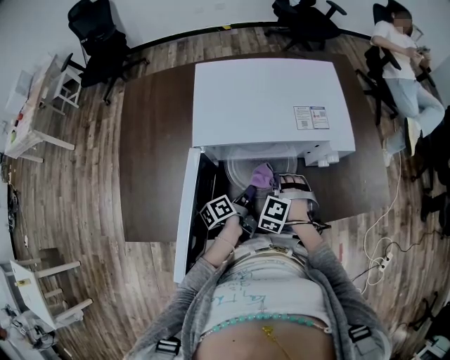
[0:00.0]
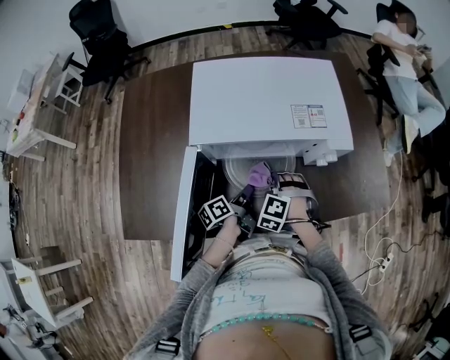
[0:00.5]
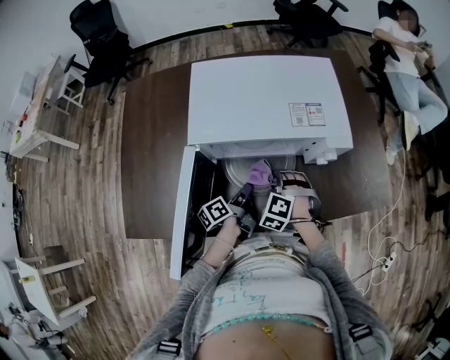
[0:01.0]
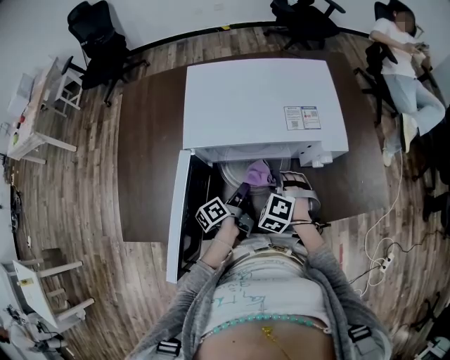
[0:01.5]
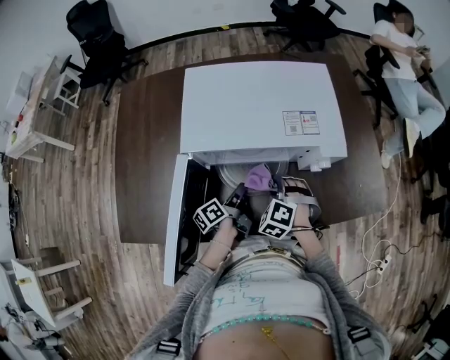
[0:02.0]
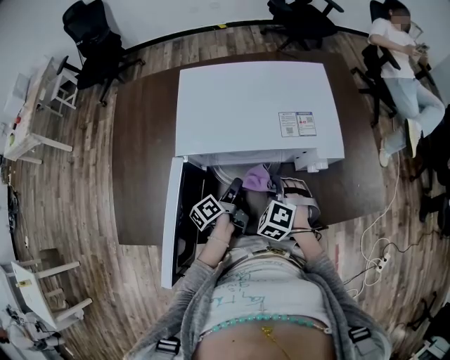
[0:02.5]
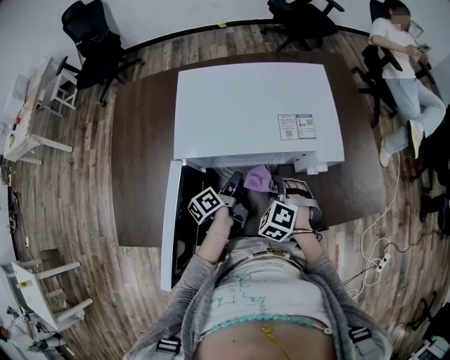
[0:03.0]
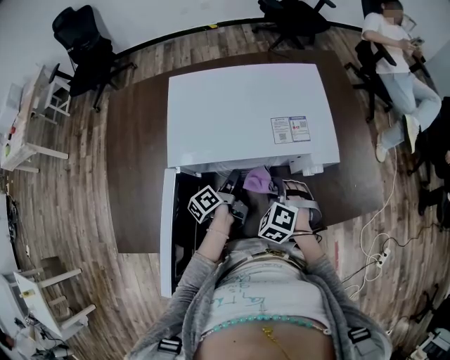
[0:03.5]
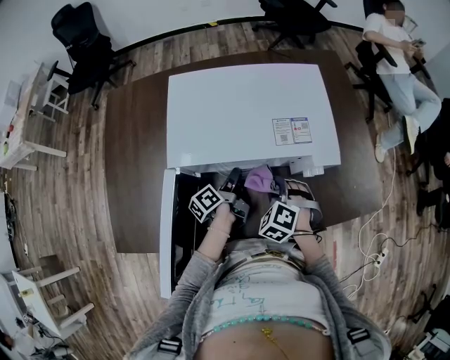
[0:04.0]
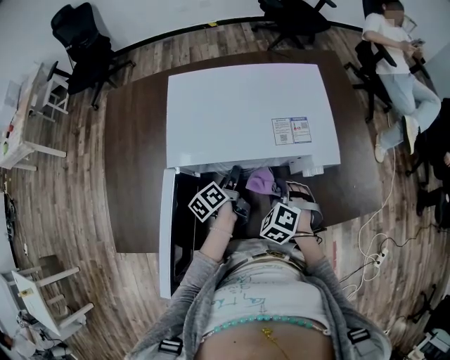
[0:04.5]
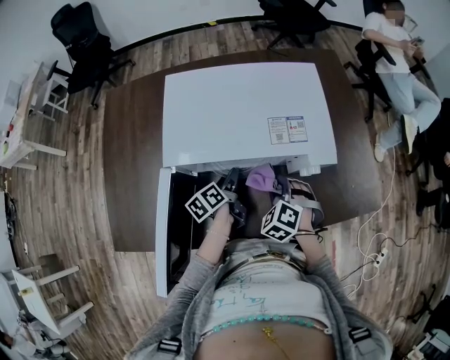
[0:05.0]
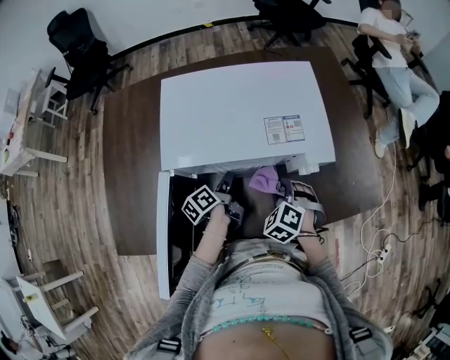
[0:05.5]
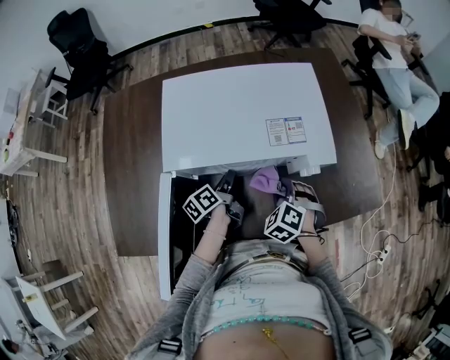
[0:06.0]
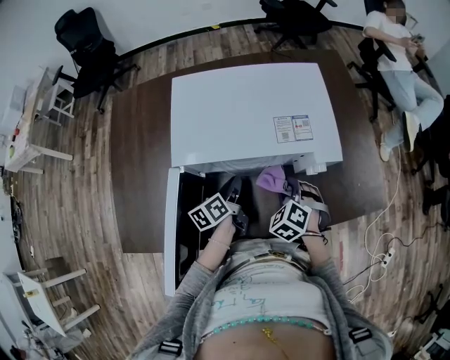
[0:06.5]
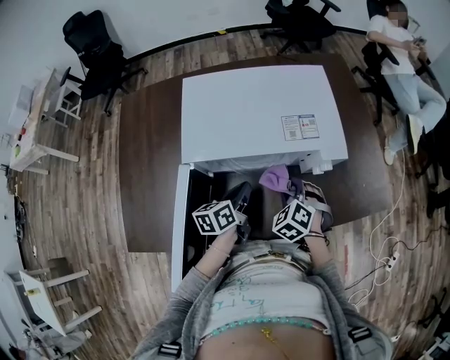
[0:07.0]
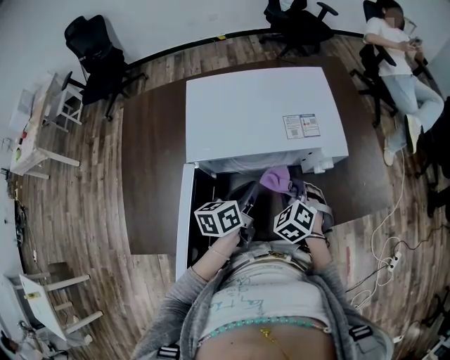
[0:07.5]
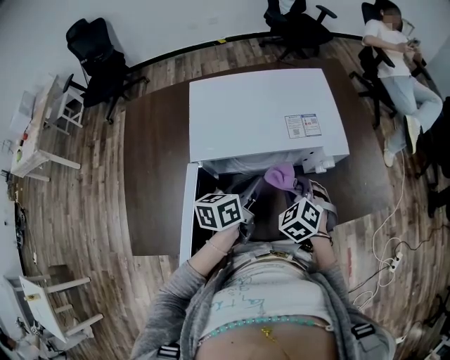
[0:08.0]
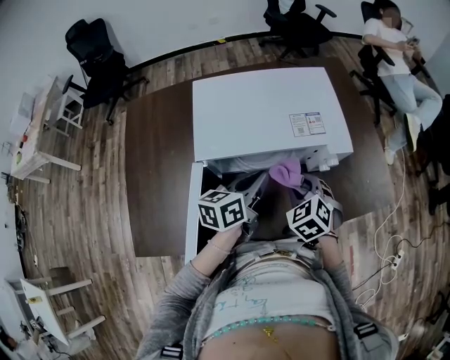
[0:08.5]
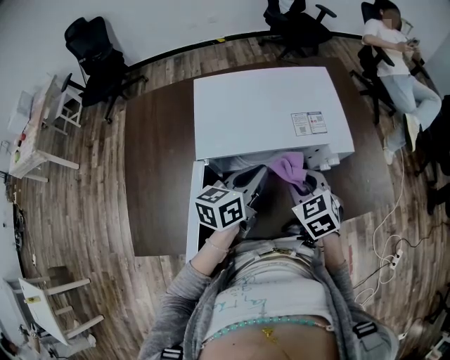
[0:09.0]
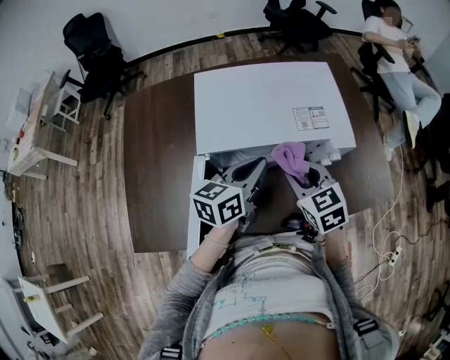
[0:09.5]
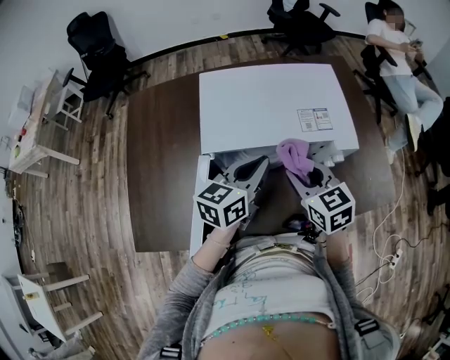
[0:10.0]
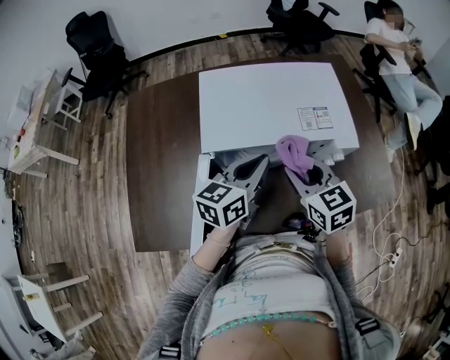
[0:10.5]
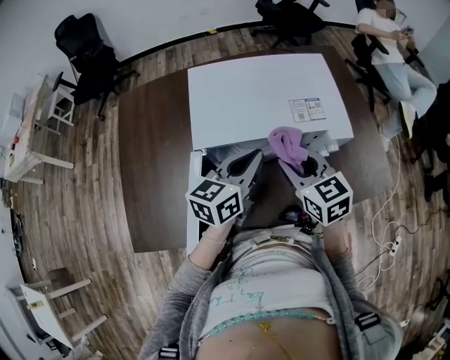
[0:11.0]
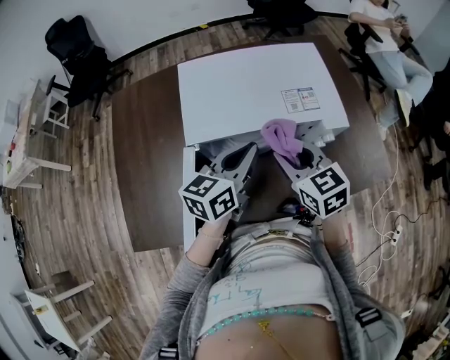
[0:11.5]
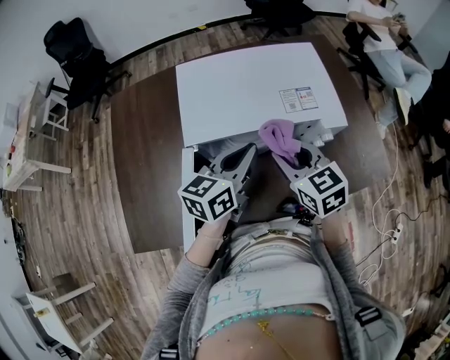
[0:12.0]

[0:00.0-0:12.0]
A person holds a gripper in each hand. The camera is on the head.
0:00.0 to 0:02.0: There are only small adjustments of the grippers.
0:02.0 to 0:04.0: The left gripper heads forward, covering approximately 10 cm.
0:04.0 to 0:06.0: The left gripper opens and closes again.
0:06.0 to 0:08.0: The right gripper changes place by roughly 5 cm; the left gripper moves upward, some 15 cm, and swivels some 40 degrees.
0:08.0 to 0:10.0: The two grippers go roughly 10 cm upward. The left gripper changes its angle by roughly 20 degrees, while the right gripper turns by roughly 40 degrees.
0:10.0 to 0:12.0: There are only small adjustments of the grippers.

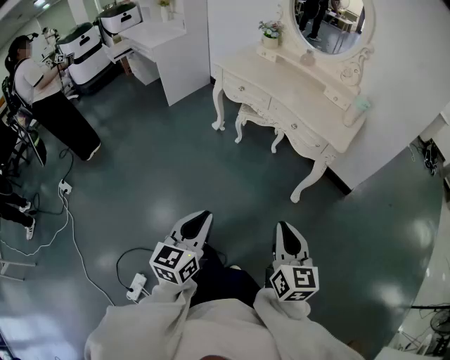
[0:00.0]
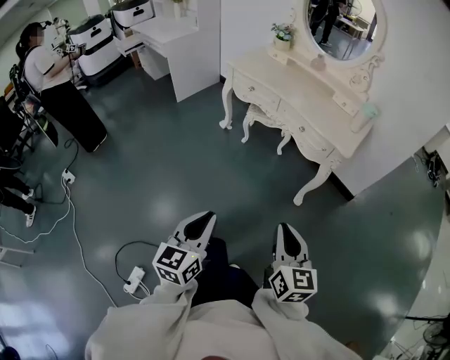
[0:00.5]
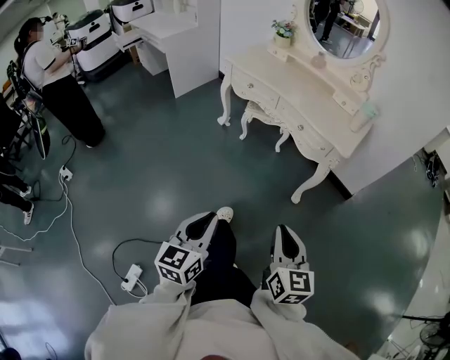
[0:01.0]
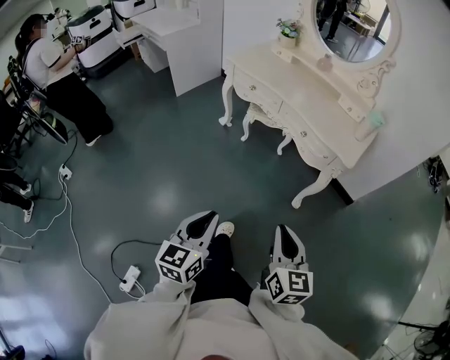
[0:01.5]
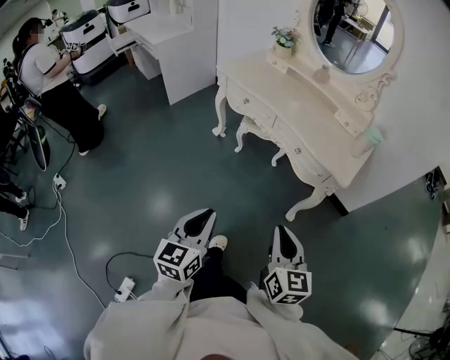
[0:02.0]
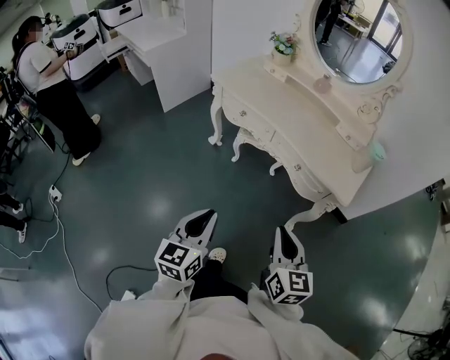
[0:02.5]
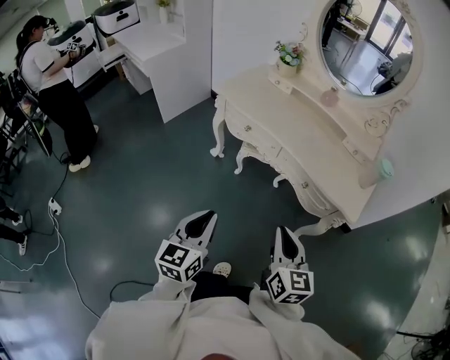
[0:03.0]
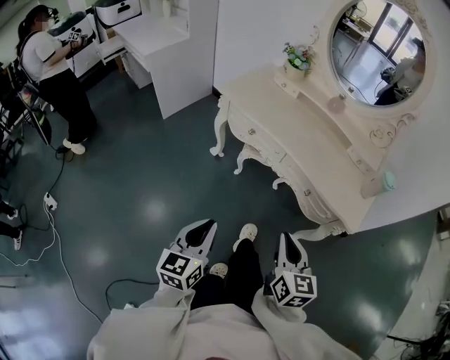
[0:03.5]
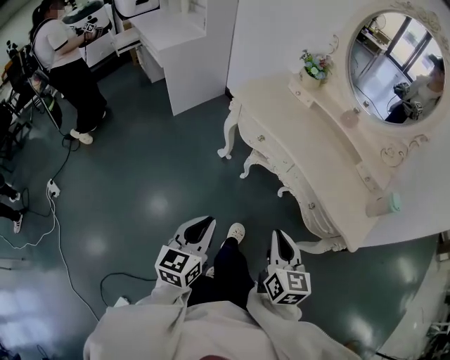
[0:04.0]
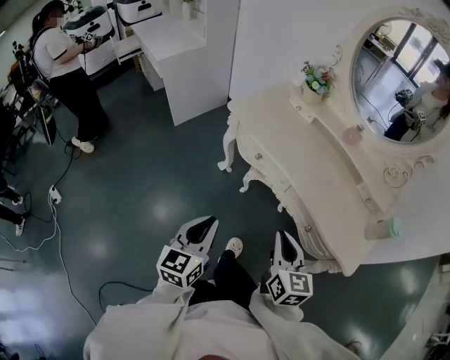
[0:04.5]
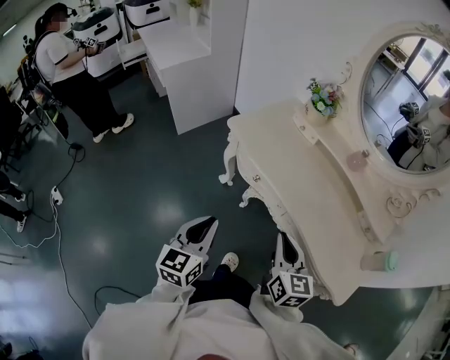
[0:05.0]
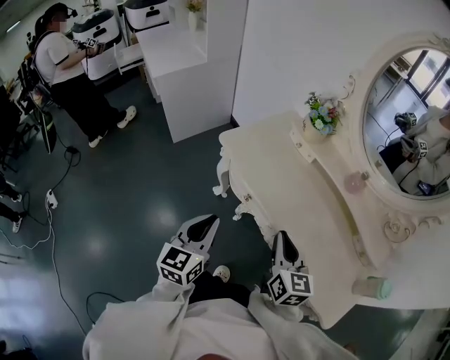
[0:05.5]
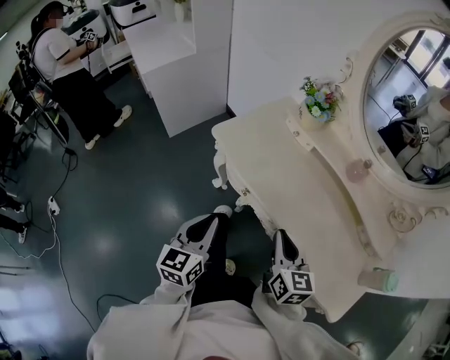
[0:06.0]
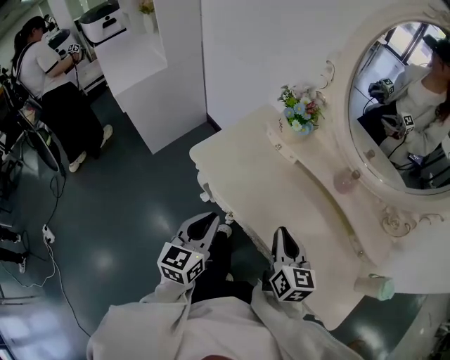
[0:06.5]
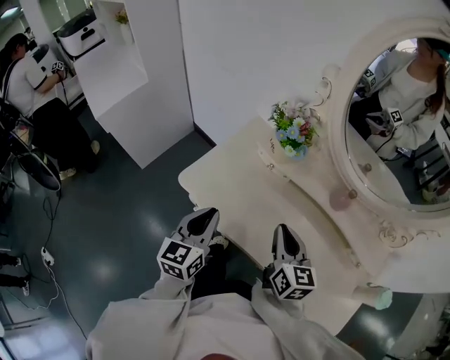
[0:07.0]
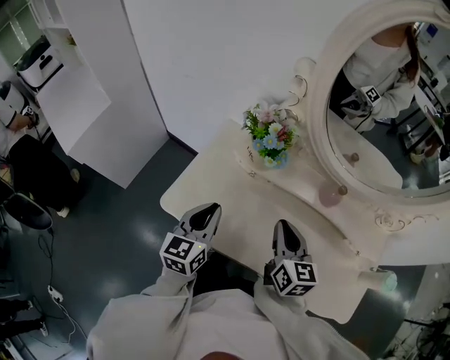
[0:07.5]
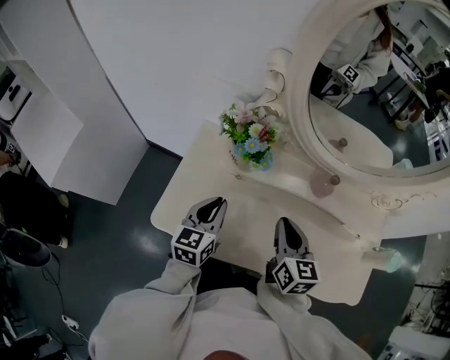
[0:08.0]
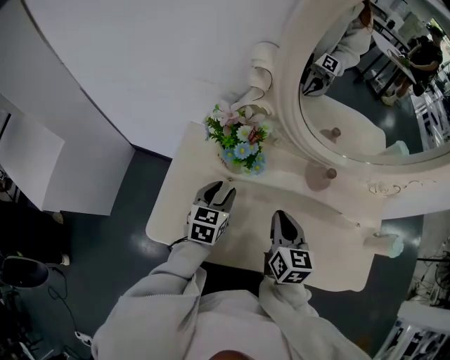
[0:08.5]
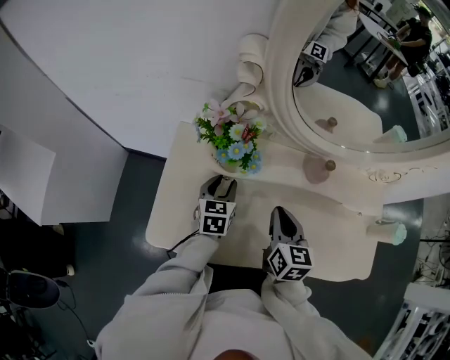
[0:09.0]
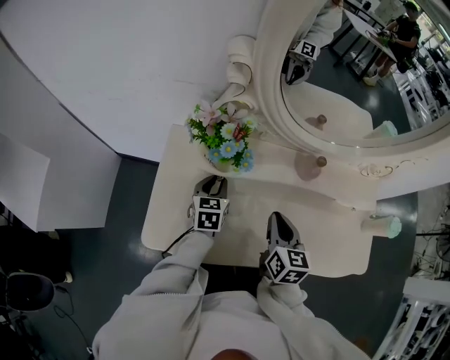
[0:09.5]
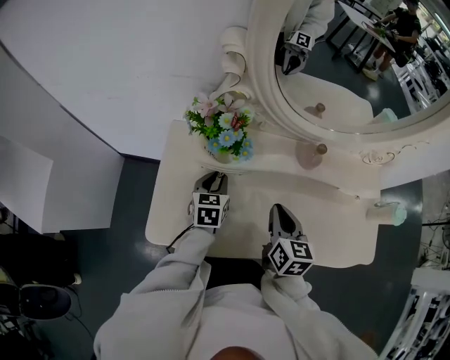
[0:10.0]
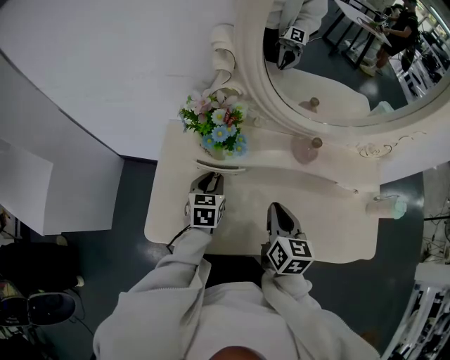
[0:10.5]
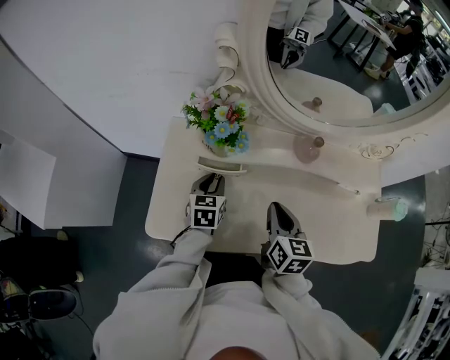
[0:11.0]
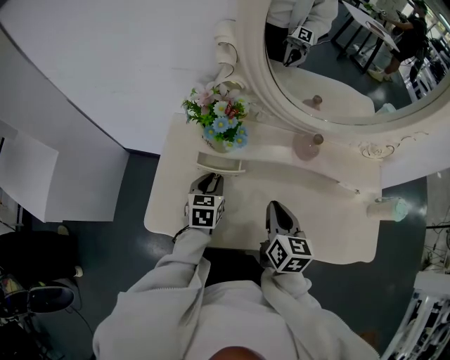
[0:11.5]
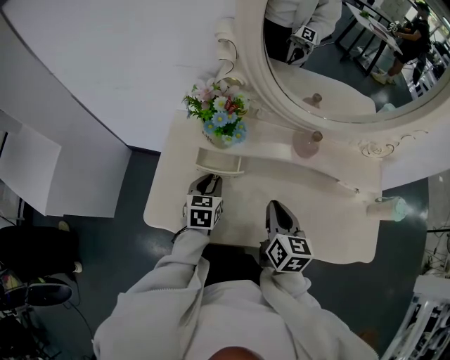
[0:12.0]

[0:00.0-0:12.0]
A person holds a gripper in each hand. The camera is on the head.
0:00.0 to 0:02.0: Both grippers travel together forward, about 15 cm.
0:02.0 to 0:04.0: Both grippers move forward and to the left, approximately 25 cm.
0:04.0 to 0:06.0: The grippers both shift forward by approximately 30 cm.
0:06.0 to 0:08.0: The right gripper ends up about 25 cm from where it was, and turns by about 30 degrees. The left gripper ends up about 35 cm from where it was, and rotates some 30 degrees.
0:08.0 to 0:10.0: The left gripper goes about 15 cm downward and forward. Meanwhile the right gripper shifts by some 5 cm.
0:10.0 to 0:12.0: The left gripper shifts approximately 5 cm backward.

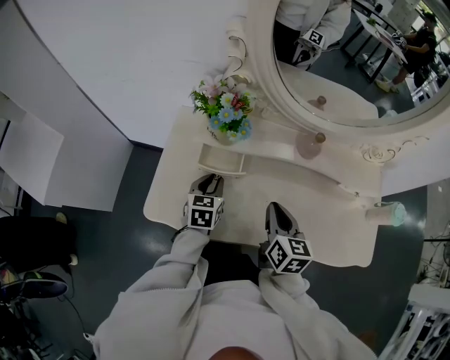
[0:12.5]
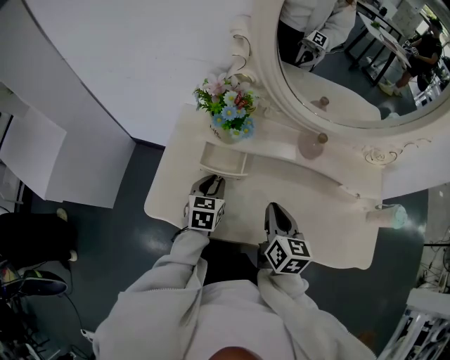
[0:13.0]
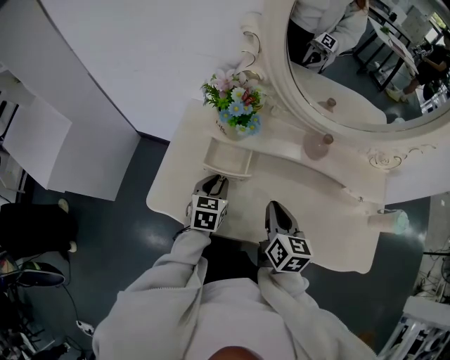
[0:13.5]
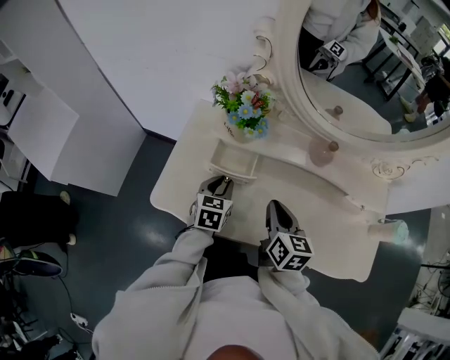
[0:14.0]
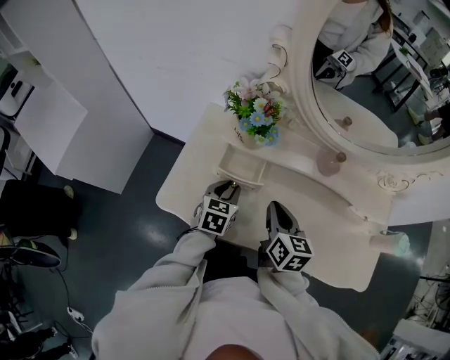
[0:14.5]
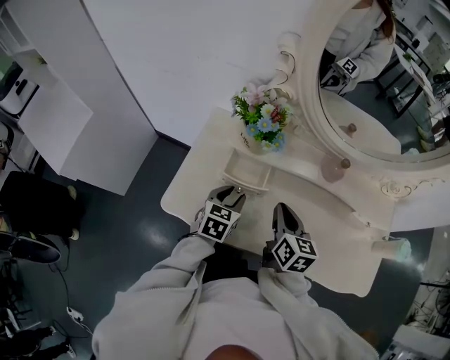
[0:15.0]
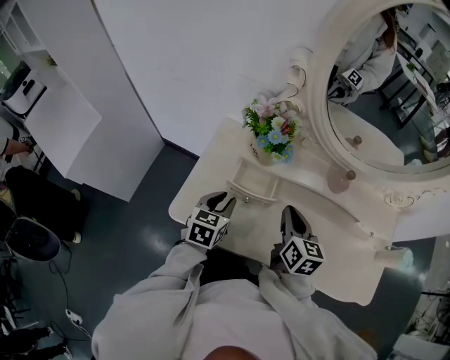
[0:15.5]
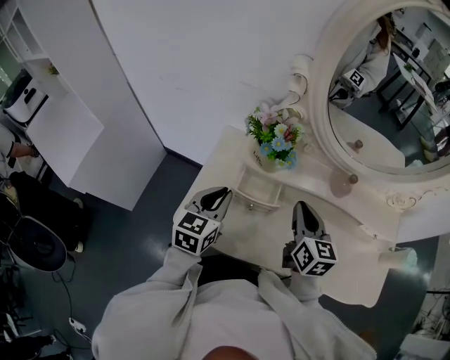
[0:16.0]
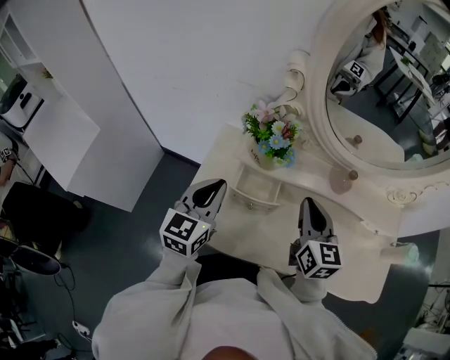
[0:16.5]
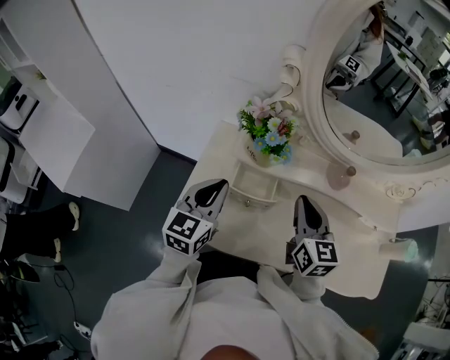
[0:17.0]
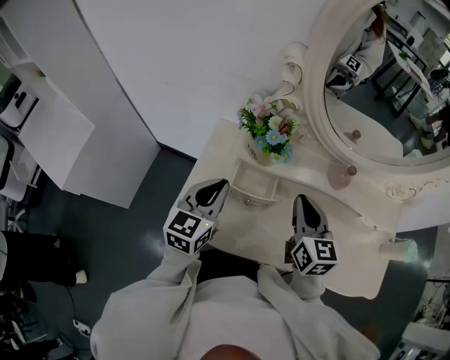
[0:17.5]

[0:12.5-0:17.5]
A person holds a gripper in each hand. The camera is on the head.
0:12.5 to 0:15.0: The right gripper ends up some 5 cm from where it was.
0:15.0 to 0:17.5: The right gripper shifts roughly 10 cm upward. Meanwhile the left gripper travels upward and to the left by roughly 15 cm, rotates roughly 20 degrees, and closes up.
